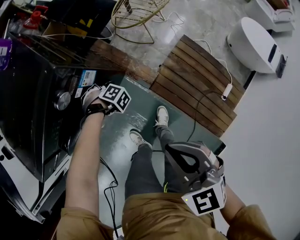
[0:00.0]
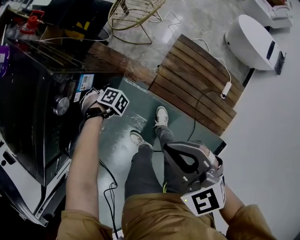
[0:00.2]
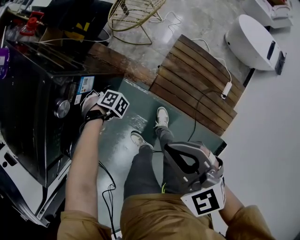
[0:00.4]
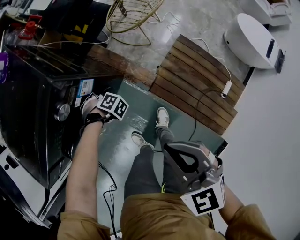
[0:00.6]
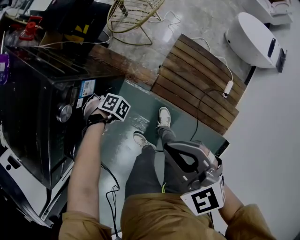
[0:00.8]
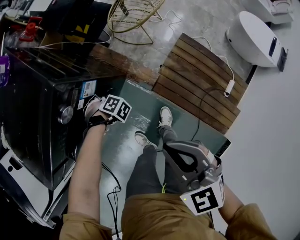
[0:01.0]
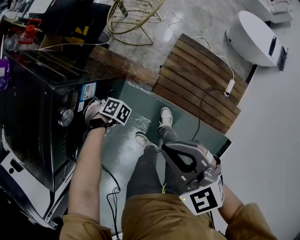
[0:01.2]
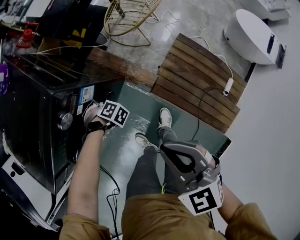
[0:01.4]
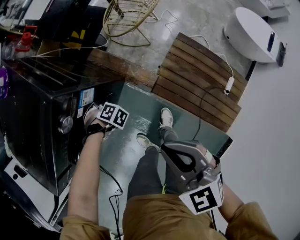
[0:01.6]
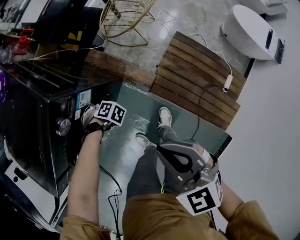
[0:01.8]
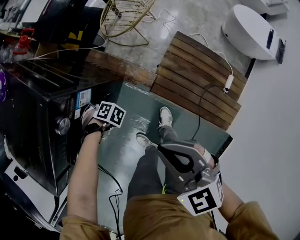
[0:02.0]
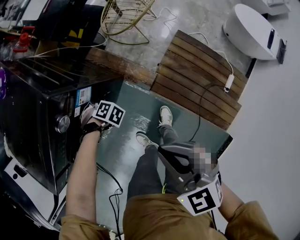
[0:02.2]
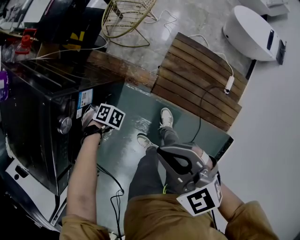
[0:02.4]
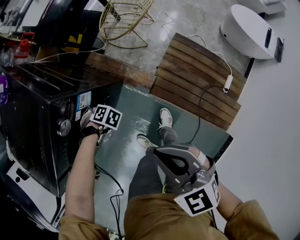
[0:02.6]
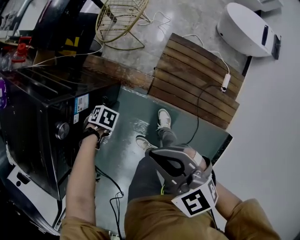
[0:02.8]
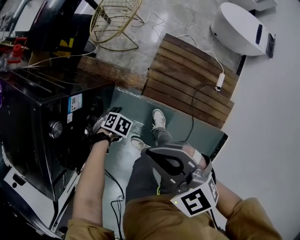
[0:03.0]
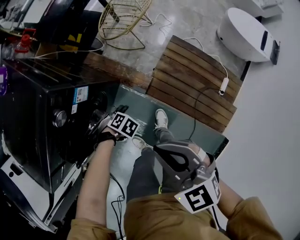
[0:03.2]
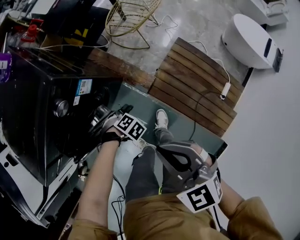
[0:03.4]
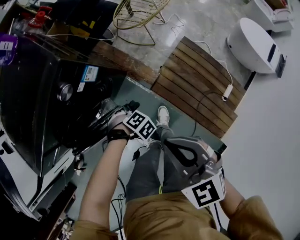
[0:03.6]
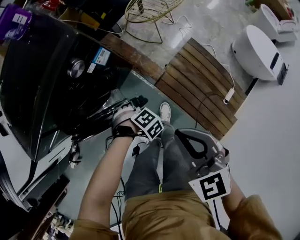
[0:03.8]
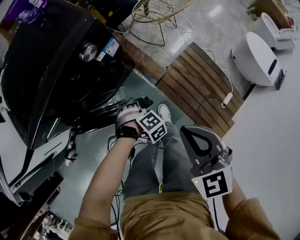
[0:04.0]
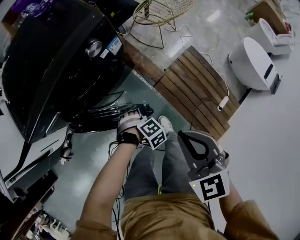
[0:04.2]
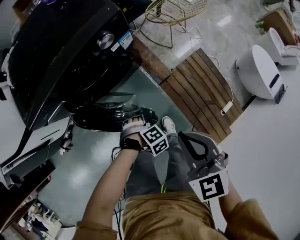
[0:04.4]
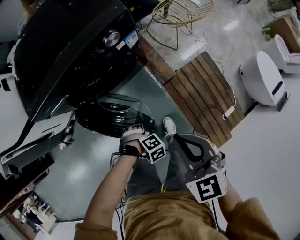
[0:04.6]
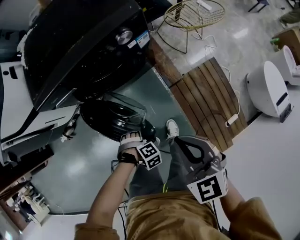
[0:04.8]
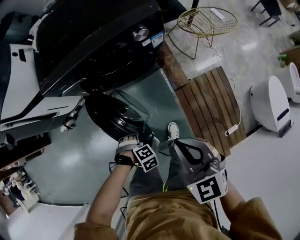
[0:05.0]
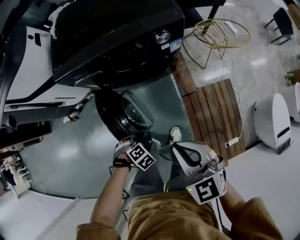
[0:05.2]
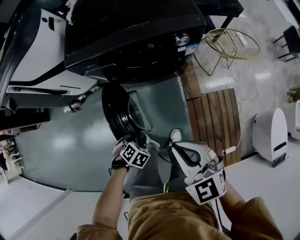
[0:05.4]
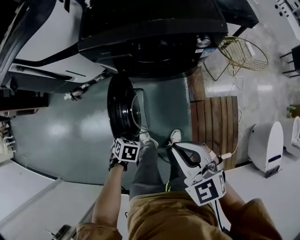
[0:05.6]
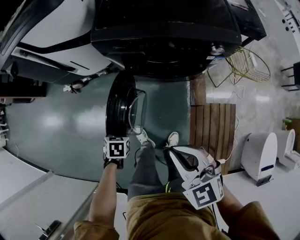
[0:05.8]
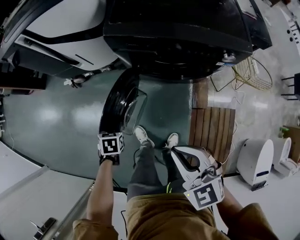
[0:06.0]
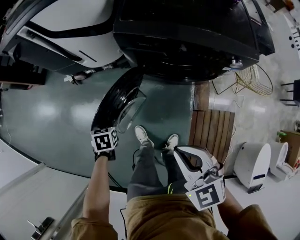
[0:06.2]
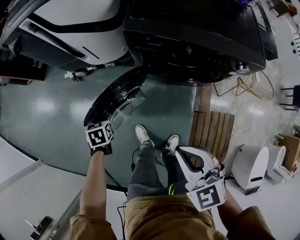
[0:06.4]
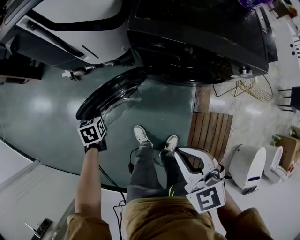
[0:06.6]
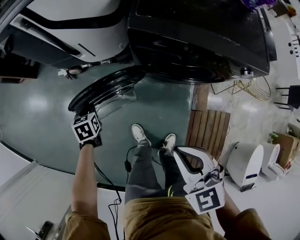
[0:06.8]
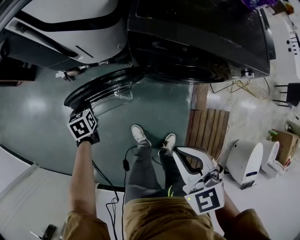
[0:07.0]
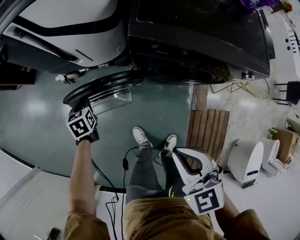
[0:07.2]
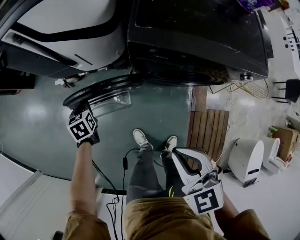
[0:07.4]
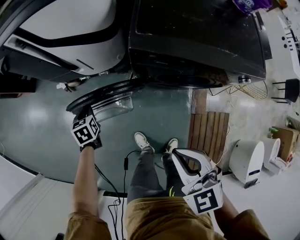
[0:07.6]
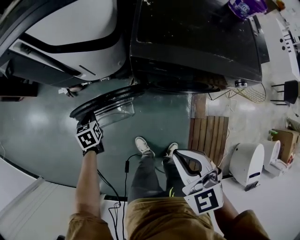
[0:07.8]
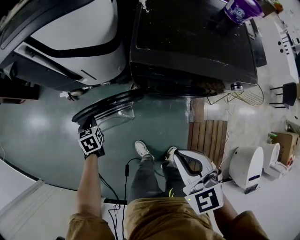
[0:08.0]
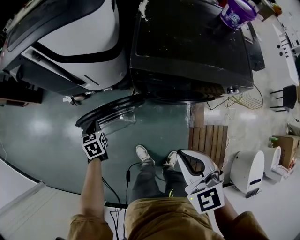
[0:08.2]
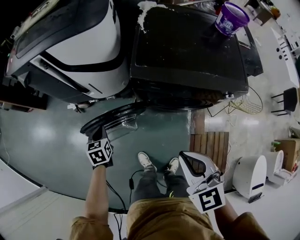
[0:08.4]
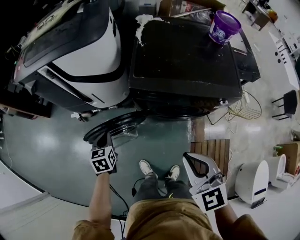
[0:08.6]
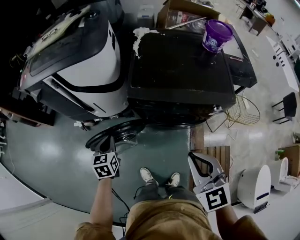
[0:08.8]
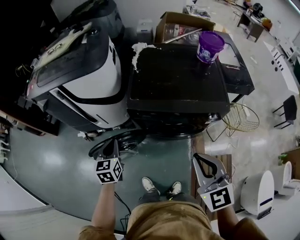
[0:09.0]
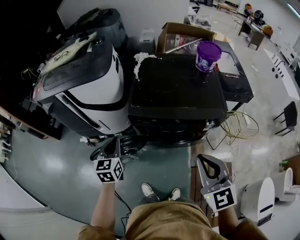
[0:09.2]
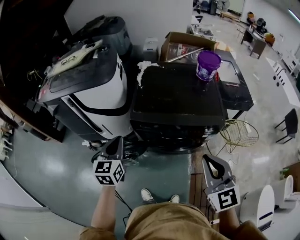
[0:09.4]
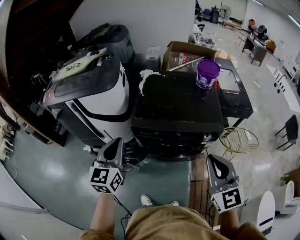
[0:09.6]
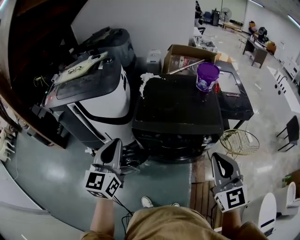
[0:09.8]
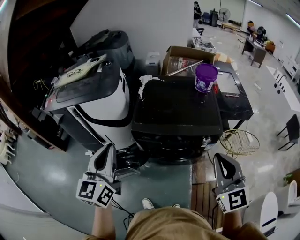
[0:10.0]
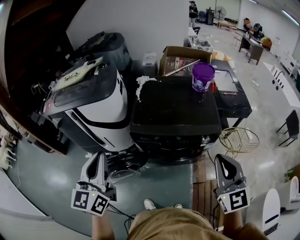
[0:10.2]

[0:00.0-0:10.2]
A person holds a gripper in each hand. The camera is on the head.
0:00.0 to 0:01.4: There are only small adjustments of the grippers.
0:01.4 to 0:03.0: The left gripper ends up about 10 cm from where it was.
0:03.0 to 0:04.4: The right gripper shifts by about 15 cm. Meanwhile the left gripper moves approximately 20 cm.
0:04.4 to 0:05.8: The right gripper changes place by some 20 cm, and swivels about 50 degrees; the left gripper ends up roughly 30 cm from where it was, and rolls counterclockwise, seen from behind, by some 100 degrees.
0:05.8 to 0:07.2: The right gripper changes place by approximately 15 cm; the left gripper changes place by roughly 30 cm, and turns by about 30 degrees.
0:07.2 to 0:08.8: The two grippers go some 20 cm upward and to the right. The left gripper changes its angle by some 20 degrees.
0:08.8 to 0:10.2: The left gripper heads upward, covering approximately 35 cm, and angles its fingers upward, by approximately 40 degrees, while the right gripper is displaced to the right and upward by some 20 cm, and changes its angle by about 20 degrees.

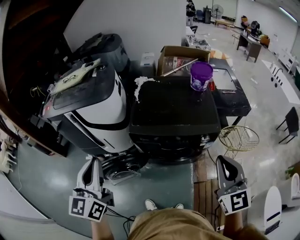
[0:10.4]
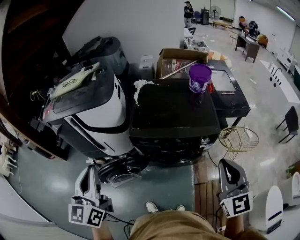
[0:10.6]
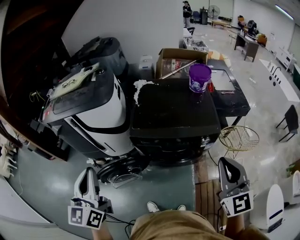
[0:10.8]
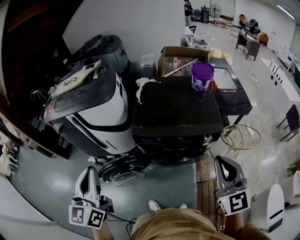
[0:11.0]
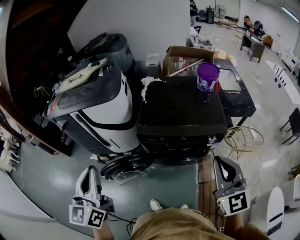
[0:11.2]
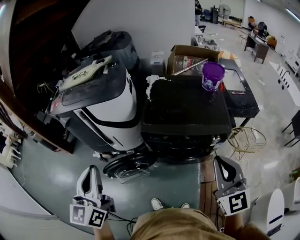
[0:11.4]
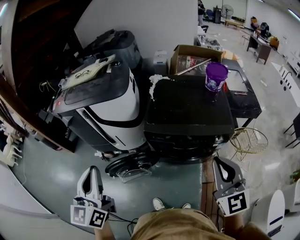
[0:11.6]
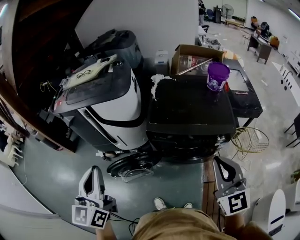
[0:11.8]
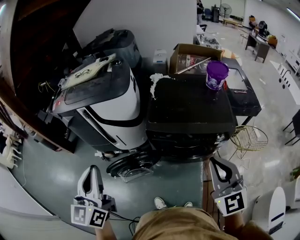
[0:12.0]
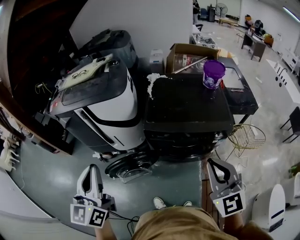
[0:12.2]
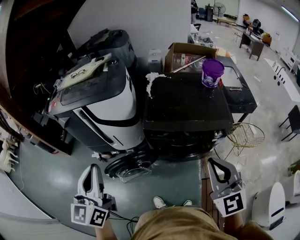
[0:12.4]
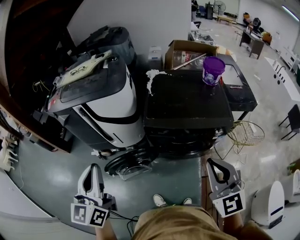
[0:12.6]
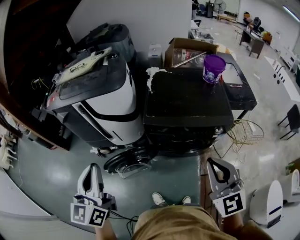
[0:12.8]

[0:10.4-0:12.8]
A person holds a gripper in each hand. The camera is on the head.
0:10.4 to 0:11.6: The grippers both shift to the left by approximately 10 cm.
0:11.6 to 0:12.8: The right gripper travels to the left by some 5 cm.

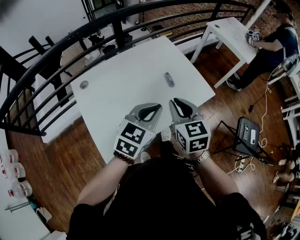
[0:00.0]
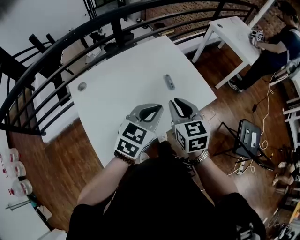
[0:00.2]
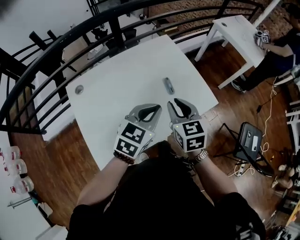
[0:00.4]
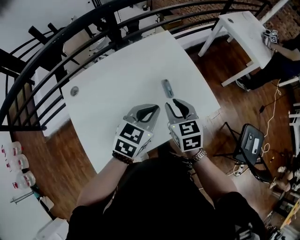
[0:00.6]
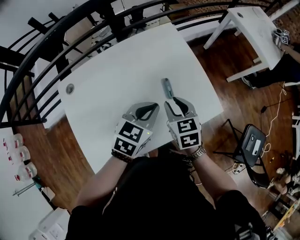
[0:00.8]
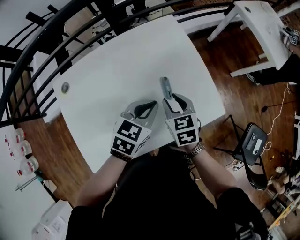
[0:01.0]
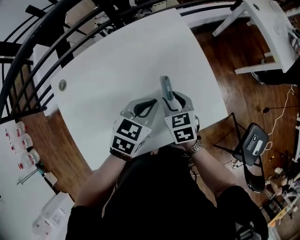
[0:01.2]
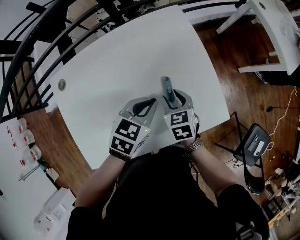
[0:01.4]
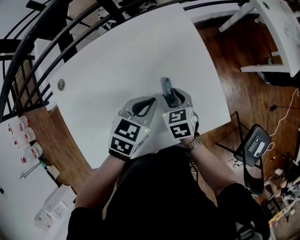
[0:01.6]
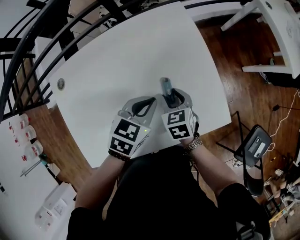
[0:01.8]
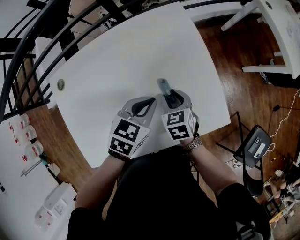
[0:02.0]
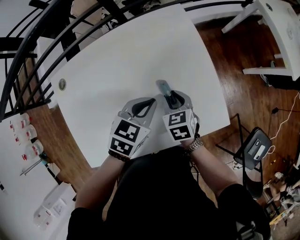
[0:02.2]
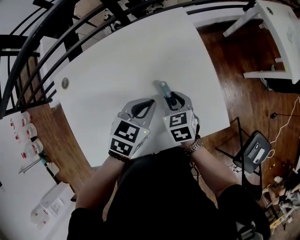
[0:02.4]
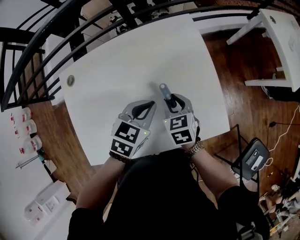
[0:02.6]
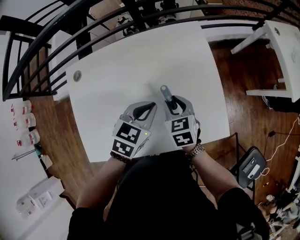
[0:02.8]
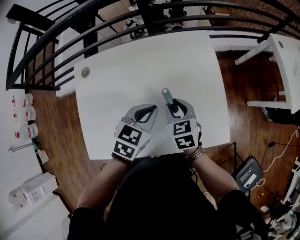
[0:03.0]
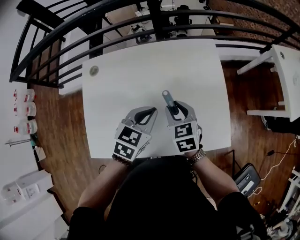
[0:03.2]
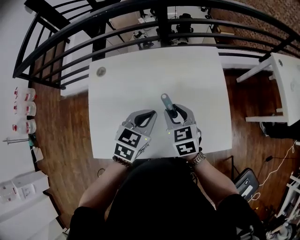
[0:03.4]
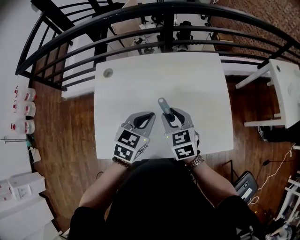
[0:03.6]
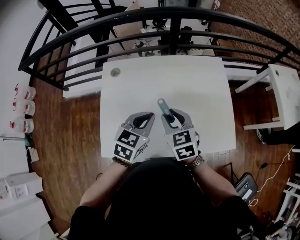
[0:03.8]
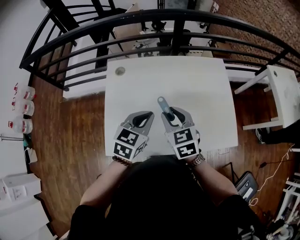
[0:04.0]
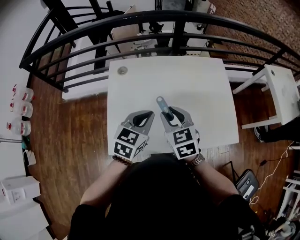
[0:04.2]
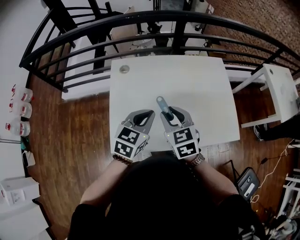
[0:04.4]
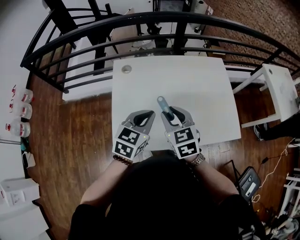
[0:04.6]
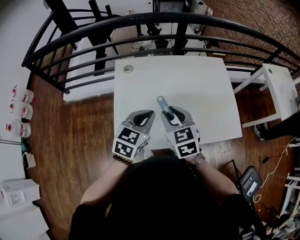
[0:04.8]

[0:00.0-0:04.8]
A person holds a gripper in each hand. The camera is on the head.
0:00.0 to 0:01.6: The left gripper shifts approximately 30 cm forward and downward, and turns by approximately 30 degrees, while the right gripper shifts some 35 cm downward and forward, swivels some 30 degrees, and opens its fingers.
0:01.6 to 0:03.2: The right gripper heads upward and to the left, covering about 10 cm, and swivels roughly 20 degrees, while the left gripper moves to the left and upward, some 10 cm.
0:03.2 to 0:04.8: The left gripper travels to the left and backward by some 25 cm, while the right gripper moves to the left, backward and upward, roughly 25 cm.

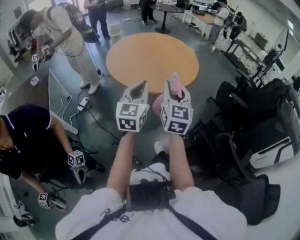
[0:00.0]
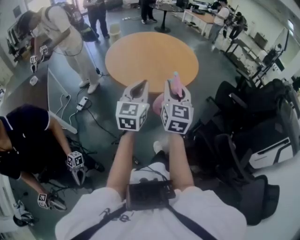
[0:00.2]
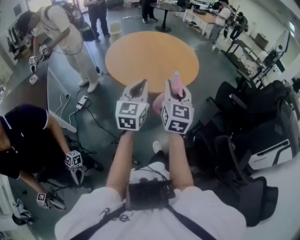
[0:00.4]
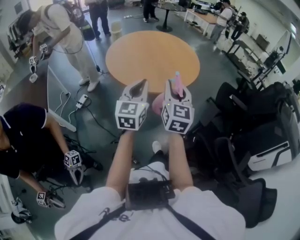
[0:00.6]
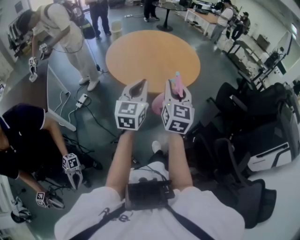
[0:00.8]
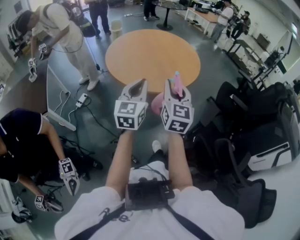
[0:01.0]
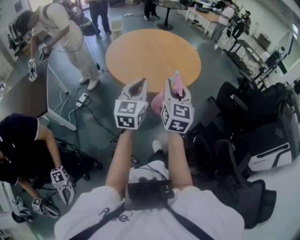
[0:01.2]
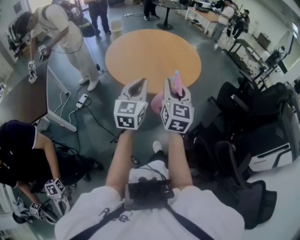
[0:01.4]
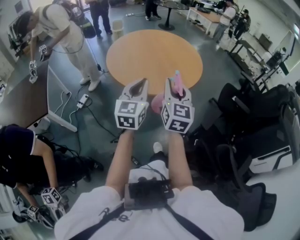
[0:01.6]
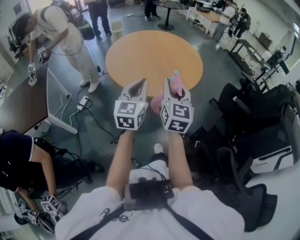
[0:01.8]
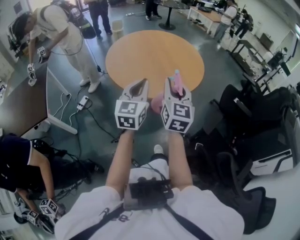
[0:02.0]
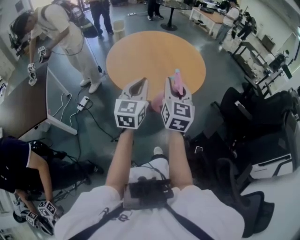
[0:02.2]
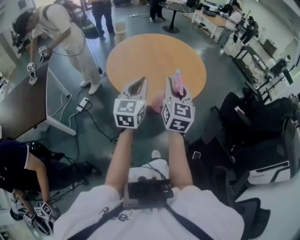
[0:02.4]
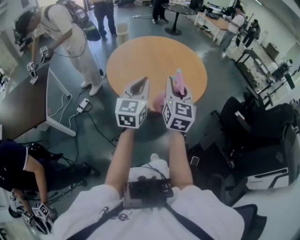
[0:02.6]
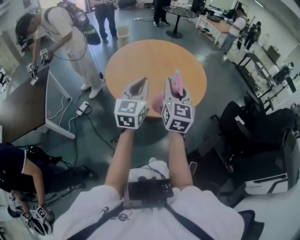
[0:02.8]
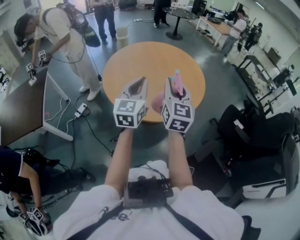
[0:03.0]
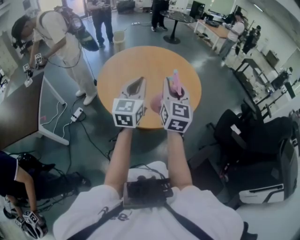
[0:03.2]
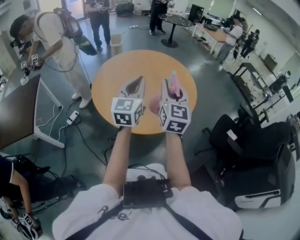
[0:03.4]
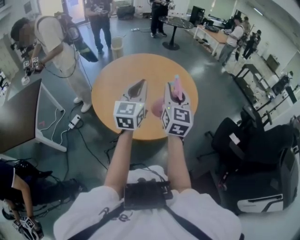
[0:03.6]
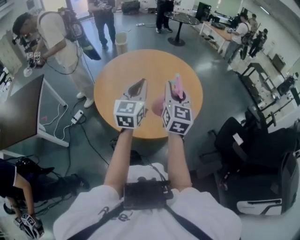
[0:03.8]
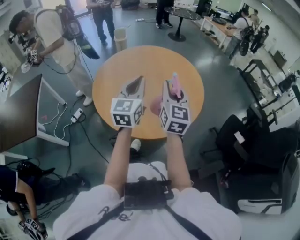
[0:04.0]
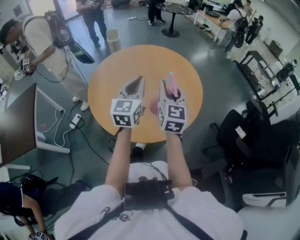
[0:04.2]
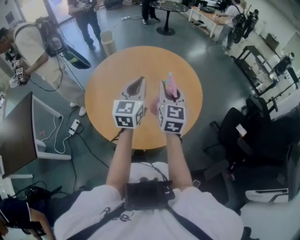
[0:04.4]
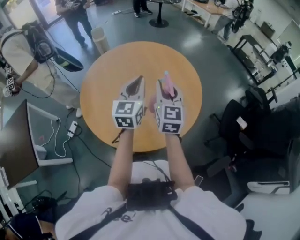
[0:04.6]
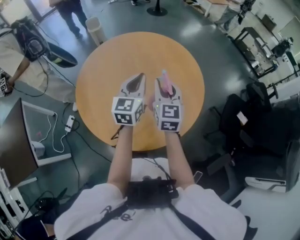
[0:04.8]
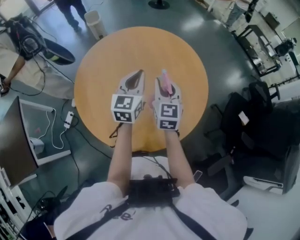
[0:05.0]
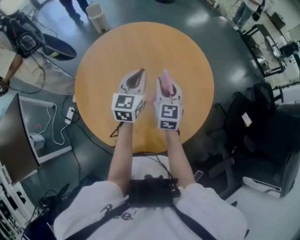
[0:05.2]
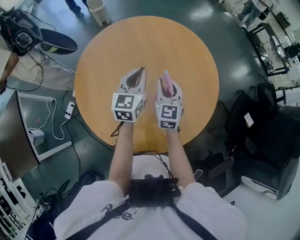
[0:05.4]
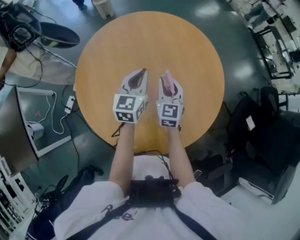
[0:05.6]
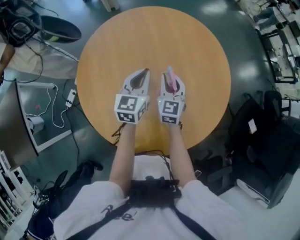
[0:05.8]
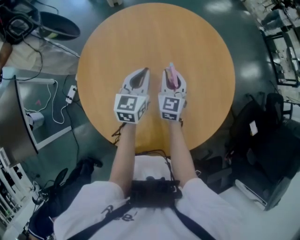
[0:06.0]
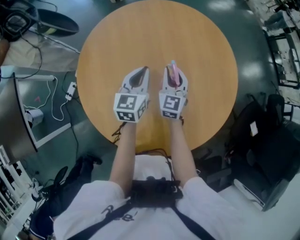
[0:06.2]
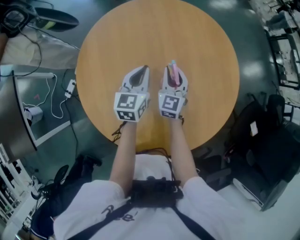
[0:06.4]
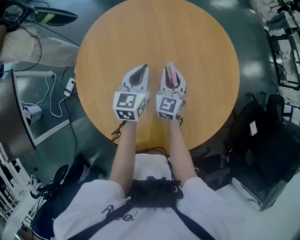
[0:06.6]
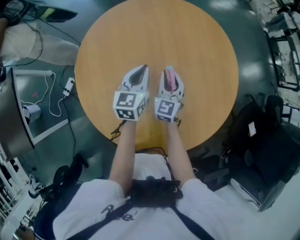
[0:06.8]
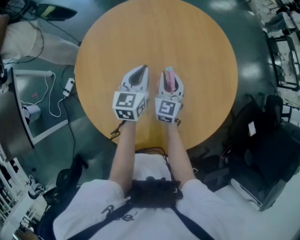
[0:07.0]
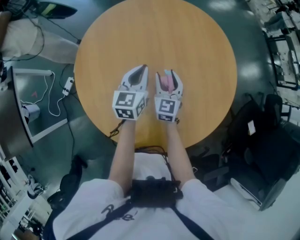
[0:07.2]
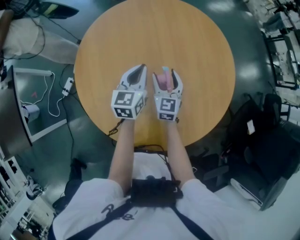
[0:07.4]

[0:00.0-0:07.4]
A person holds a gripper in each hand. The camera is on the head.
0:00.0 to 0:01.4: The right gripper shifts by approximately 5 cm.
0:01.4 to 0:03.0: The two grippers go about 20 cm forward.
0:03.0 to 0:04.4: Both grippers travel together forward, about 20 cm.
0:04.4 to 0:06.0: The grippers both shift downward, forward and to the left by some 35 cm.
0:06.0 to 0:07.4: The right gripper ends up approximately 5 cm from where it was, and opens its fingers.
